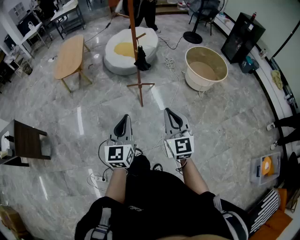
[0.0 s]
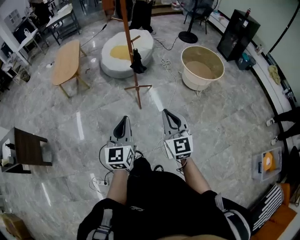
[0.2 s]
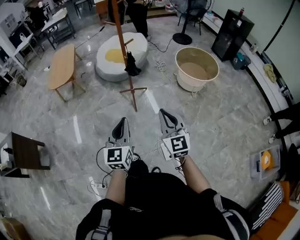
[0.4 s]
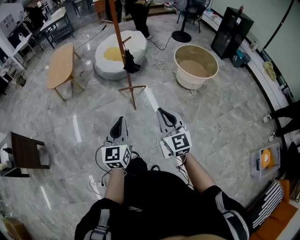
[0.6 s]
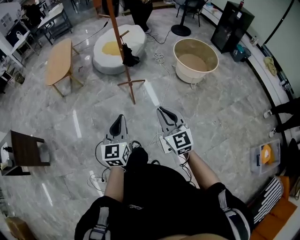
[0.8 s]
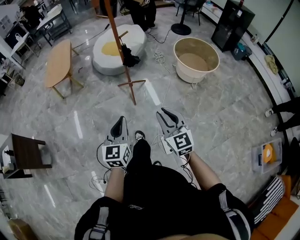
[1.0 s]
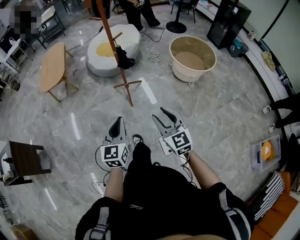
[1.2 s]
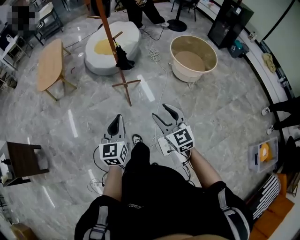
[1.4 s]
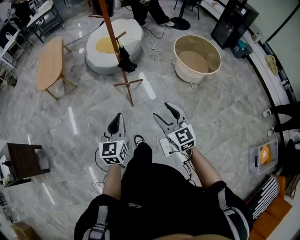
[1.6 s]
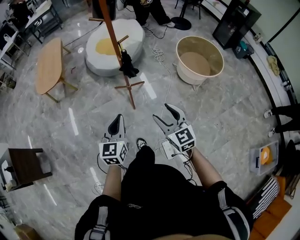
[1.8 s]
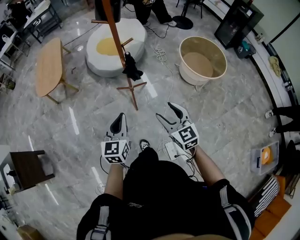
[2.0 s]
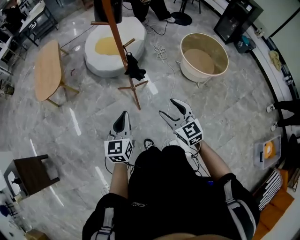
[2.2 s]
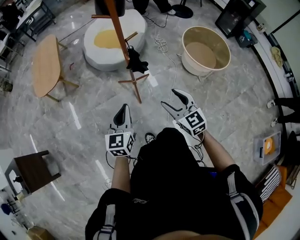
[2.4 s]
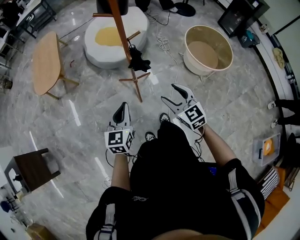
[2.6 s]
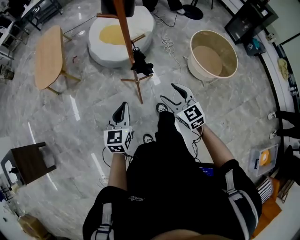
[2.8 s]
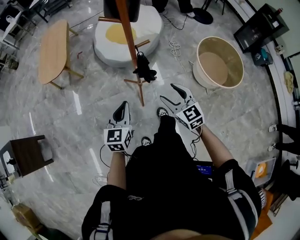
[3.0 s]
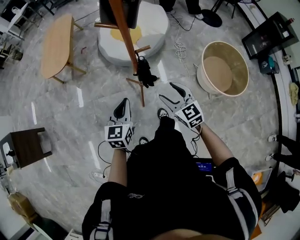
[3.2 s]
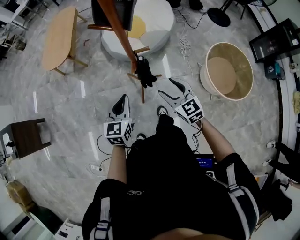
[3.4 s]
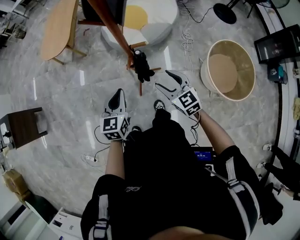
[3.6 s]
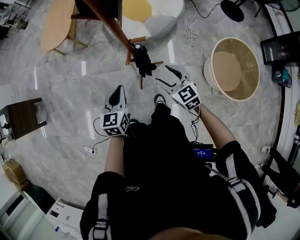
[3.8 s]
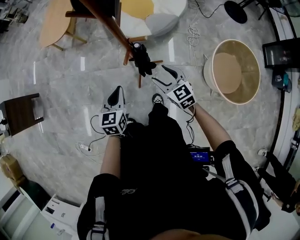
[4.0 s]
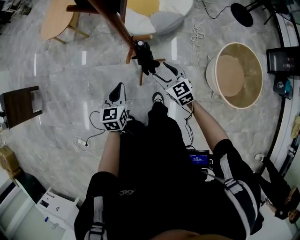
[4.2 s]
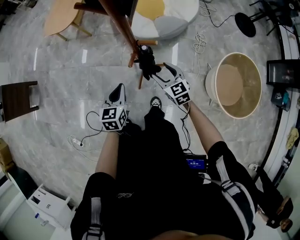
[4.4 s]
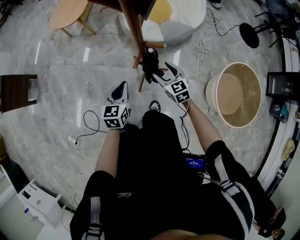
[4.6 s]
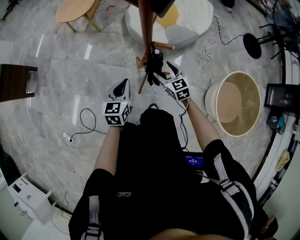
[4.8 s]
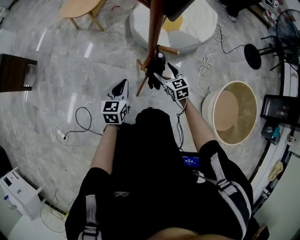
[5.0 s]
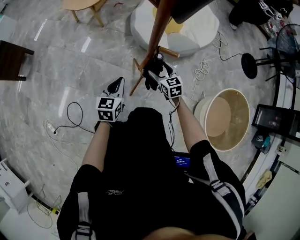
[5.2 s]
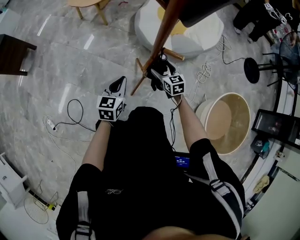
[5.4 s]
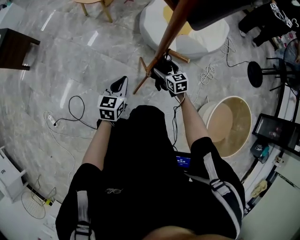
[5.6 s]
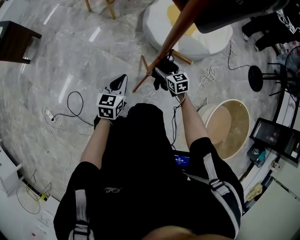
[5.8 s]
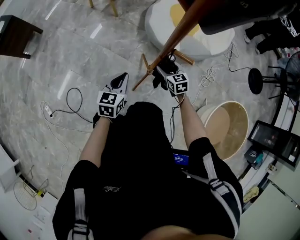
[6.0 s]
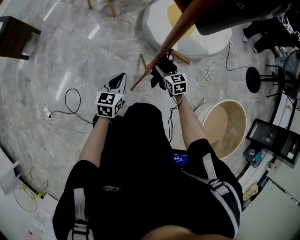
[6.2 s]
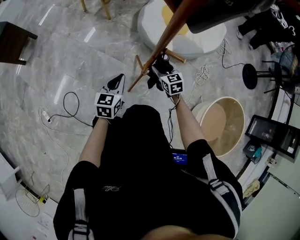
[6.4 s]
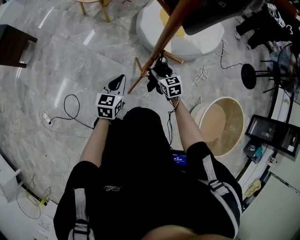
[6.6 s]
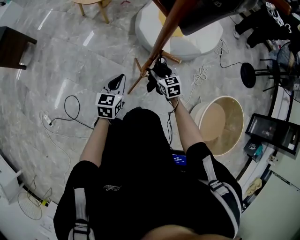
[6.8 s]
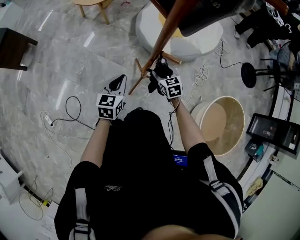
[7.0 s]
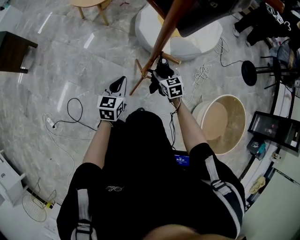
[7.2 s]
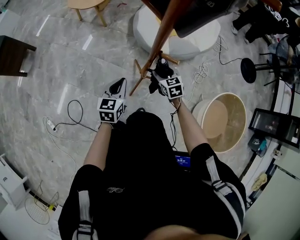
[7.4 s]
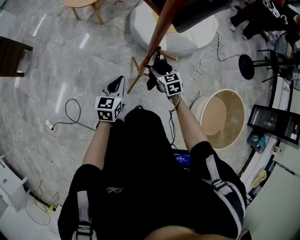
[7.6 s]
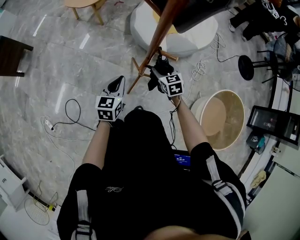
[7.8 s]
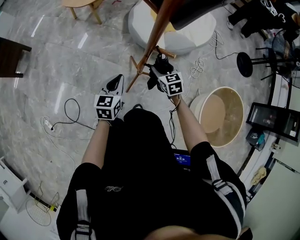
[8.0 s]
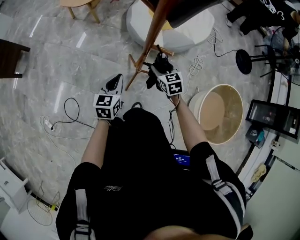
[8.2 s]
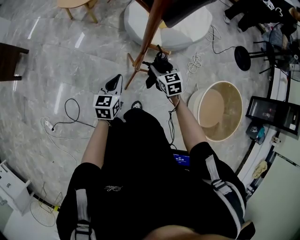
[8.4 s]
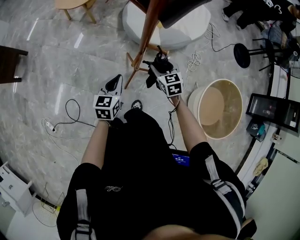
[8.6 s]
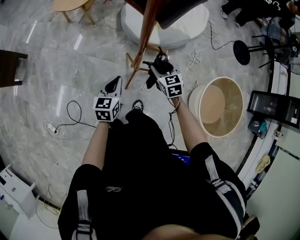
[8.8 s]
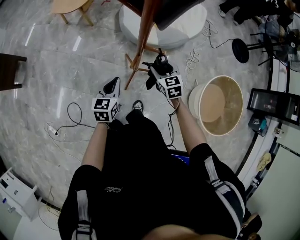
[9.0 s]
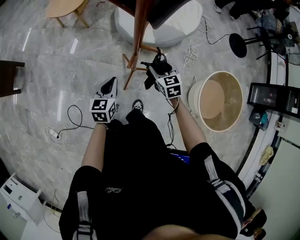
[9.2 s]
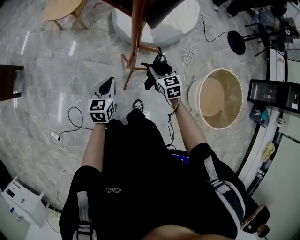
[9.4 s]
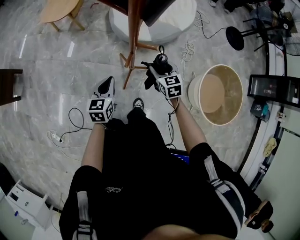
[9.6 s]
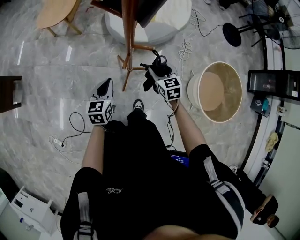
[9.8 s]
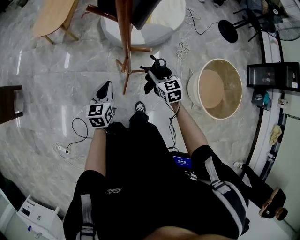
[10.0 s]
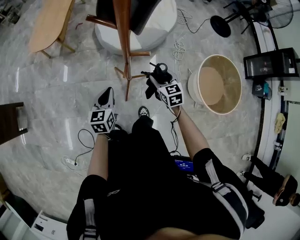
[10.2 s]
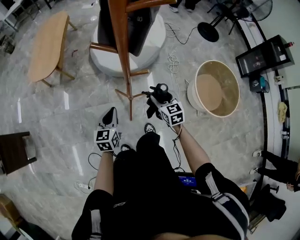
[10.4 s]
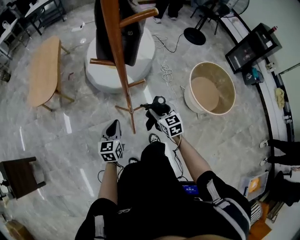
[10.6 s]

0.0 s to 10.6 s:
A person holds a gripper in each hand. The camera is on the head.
0.0 to 1.6 s: The grippers both shift forward and downward by roughly 15 cm. The right gripper opens its fingers.
1.6 to 3.0 s: Both grippers travel together forward, roughly 30 cm.
3.0 to 4.6 s: The right gripper shifts approximately 30 cm forward and downward, and turns by some 20 degrees; the left gripper shifts approximately 20 cm downward, forward and to the right, and turns by some 30 degrees.
4.6 to 6.0 s: The left gripper shifts by approximately 5 cm; the right gripper travels forward and downward by roughly 15 cm.
6.0 to 7.6 s: The right gripper goes some 5 cm upward.
7.6 to 9.0 s: The right gripper is displaced upward by roughly 5 cm.
9.0 to 10.6 s: The left gripper changes place by approximately 5 cm, and rotates roughly 20 degrees, while the right gripper ends up approximately 10 cm from where it was, and changes its angle by roughly 30 degrees.

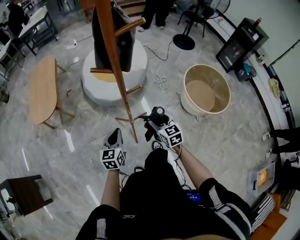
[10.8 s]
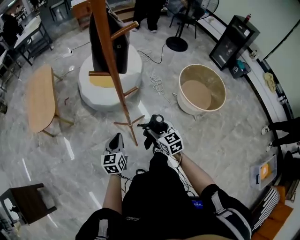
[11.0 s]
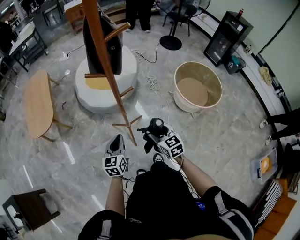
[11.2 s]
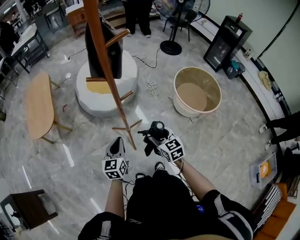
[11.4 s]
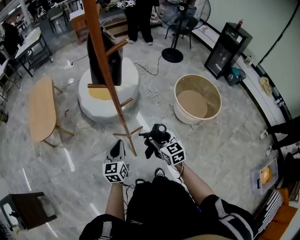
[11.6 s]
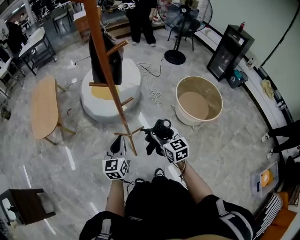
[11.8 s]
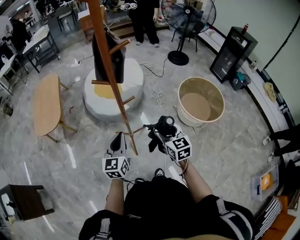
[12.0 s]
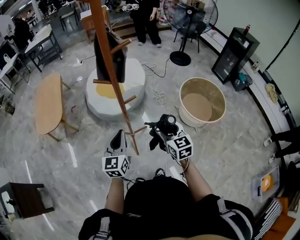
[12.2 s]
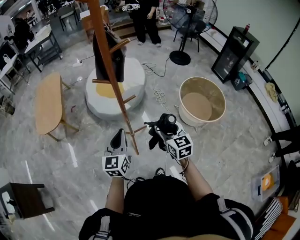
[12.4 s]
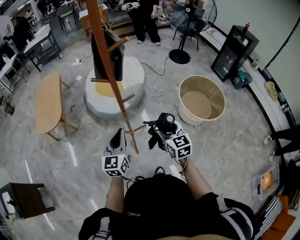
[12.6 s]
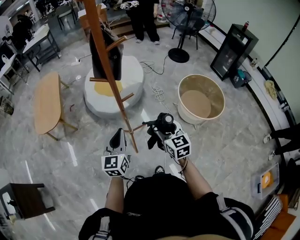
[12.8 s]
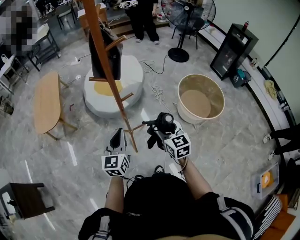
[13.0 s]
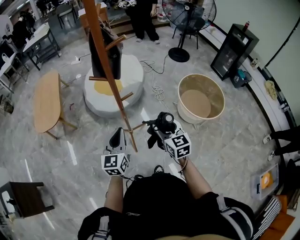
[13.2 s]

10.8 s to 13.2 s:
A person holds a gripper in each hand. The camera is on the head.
10.8 to 12.0 s: The right gripper is displaced upward and backward by roughly 15 cm; the left gripper travels upward by roughly 15 cm.
12.0 to 13.2 s: There are only small adjustments of the grippers.

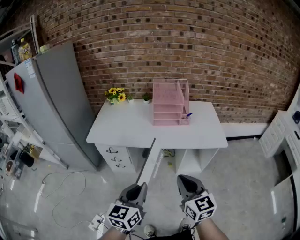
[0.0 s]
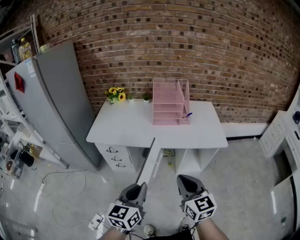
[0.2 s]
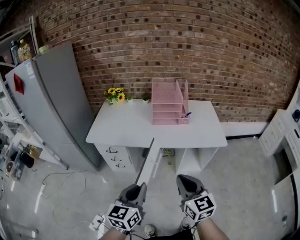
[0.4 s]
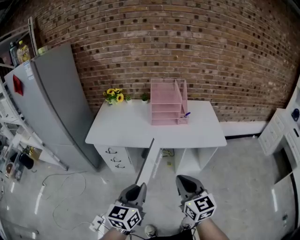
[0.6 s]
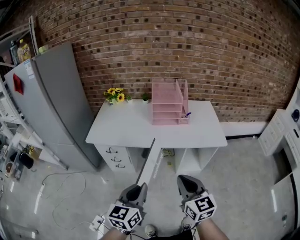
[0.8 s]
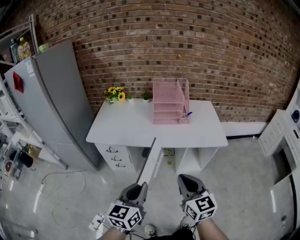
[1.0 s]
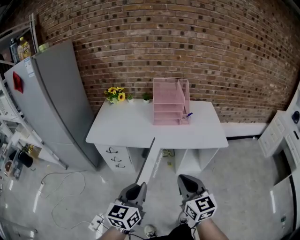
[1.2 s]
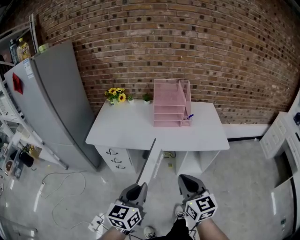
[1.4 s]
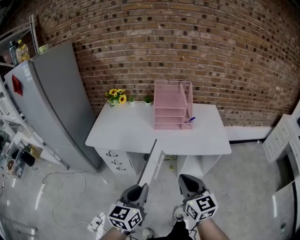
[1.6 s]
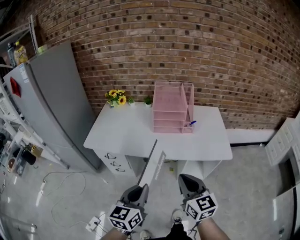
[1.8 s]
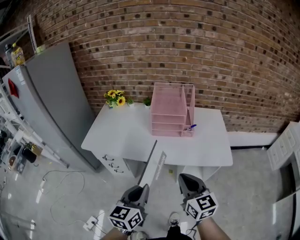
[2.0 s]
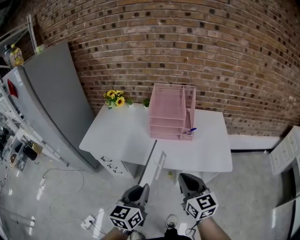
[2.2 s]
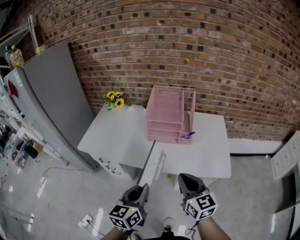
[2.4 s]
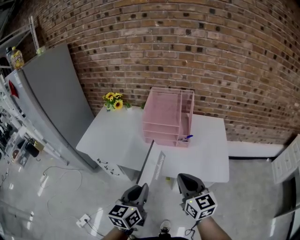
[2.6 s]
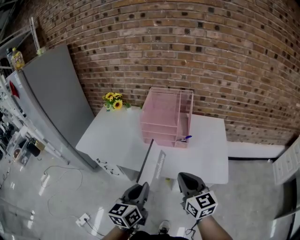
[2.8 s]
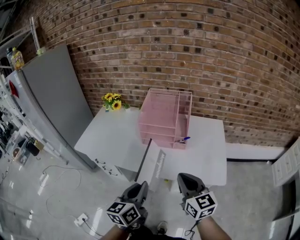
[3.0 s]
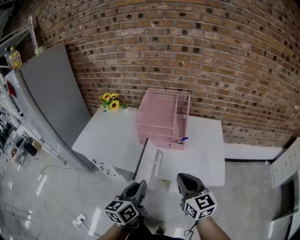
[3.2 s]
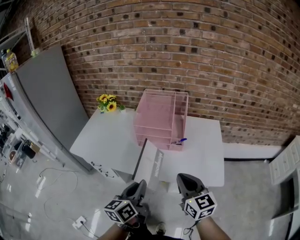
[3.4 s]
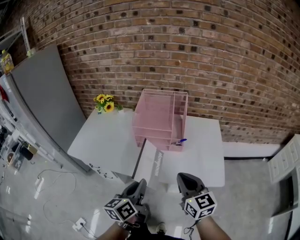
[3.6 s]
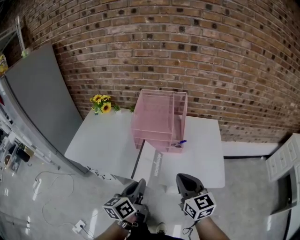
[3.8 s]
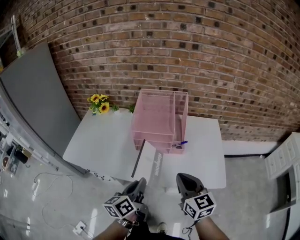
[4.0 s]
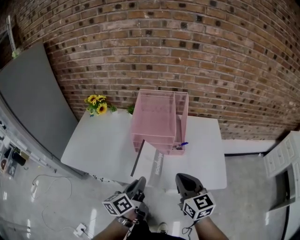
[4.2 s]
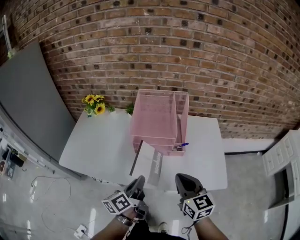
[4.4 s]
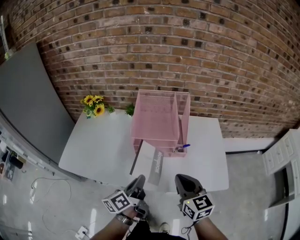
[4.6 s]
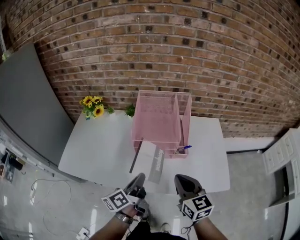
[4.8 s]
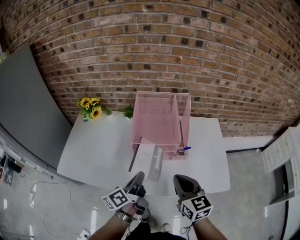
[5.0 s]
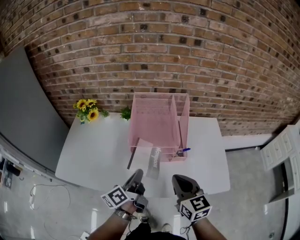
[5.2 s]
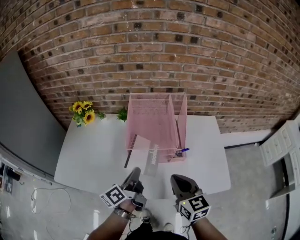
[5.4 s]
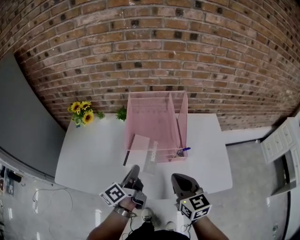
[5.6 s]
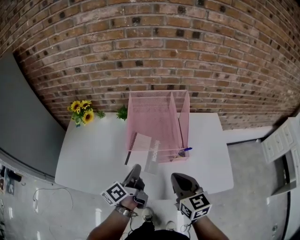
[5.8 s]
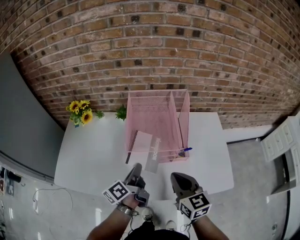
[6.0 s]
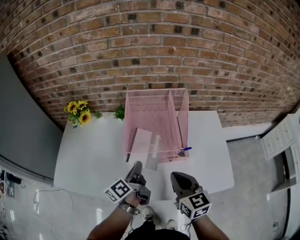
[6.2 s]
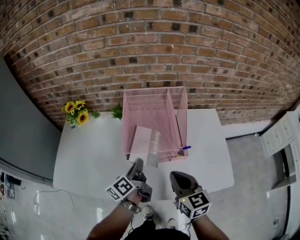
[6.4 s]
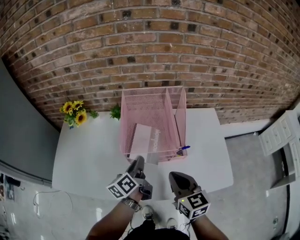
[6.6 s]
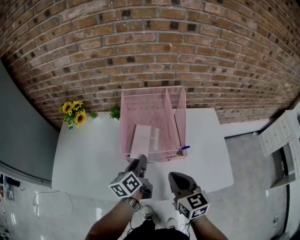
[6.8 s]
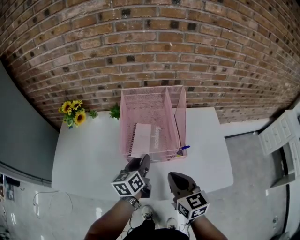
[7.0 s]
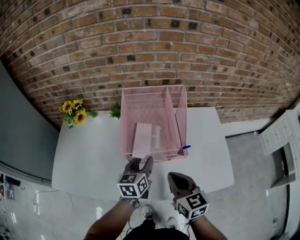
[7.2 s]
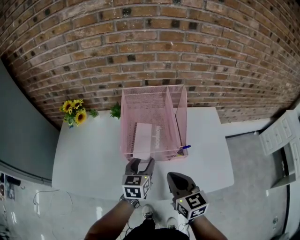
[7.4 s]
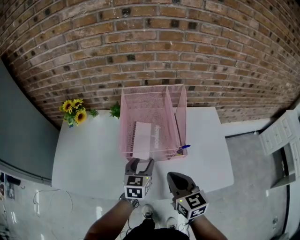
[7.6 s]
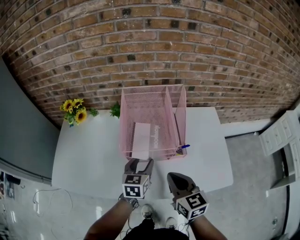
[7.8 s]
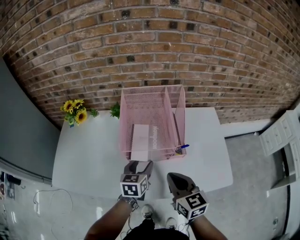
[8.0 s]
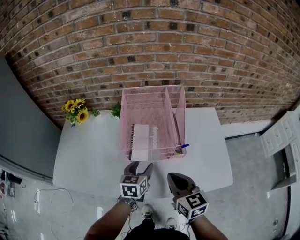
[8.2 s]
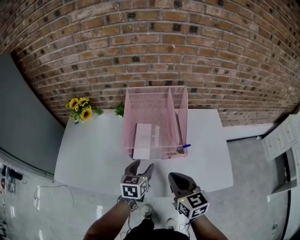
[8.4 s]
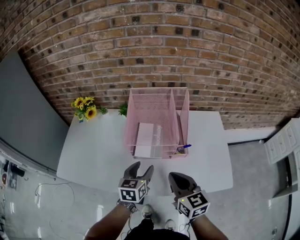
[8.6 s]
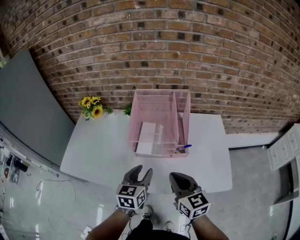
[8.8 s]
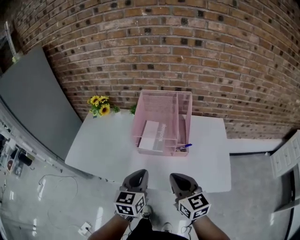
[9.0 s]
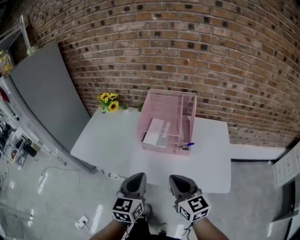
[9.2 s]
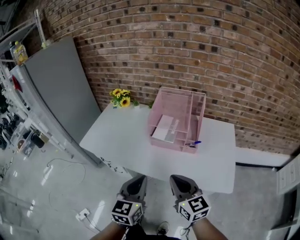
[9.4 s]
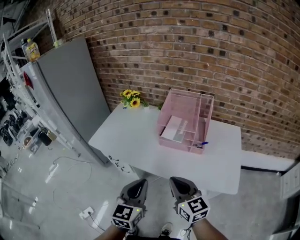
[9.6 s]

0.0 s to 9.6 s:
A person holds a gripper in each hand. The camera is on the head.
0.0 to 1.6 s: The right gripper heads forward, covering about 5 cm, while the left gripper changes place by roughly 5 cm.
1.6 to 3.2 s: The two grippers go some 25 cm forward and to the right. The left gripper turns by approximately 20 degrees.
3.2 to 4.8 s: The right gripper is displaced forward and to the left by approximately 15 cm, while the left gripper travels forward by some 20 cm, and turns by roughly 30 degrees.
4.8 to 6.4 s: The right gripper is displaced forward by approximately 10 cm. The left gripper heads forward, covering some 15 cm.
6.4 to 8.0 s: The left gripper ends up some 5 cm from where it was, rolls clockwise, seen from behind, by some 50 degrees, and opens up.
8.0 to 9.6 s: The right gripper goes some 20 cm backward, and rotates some 30 degrees; the left gripper travels backward and upward by some 35 cm, changes its angle by about 30 degrees, and closes up.

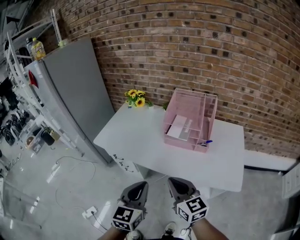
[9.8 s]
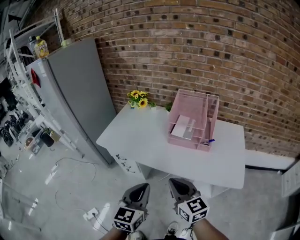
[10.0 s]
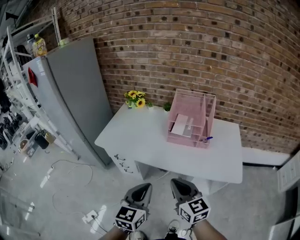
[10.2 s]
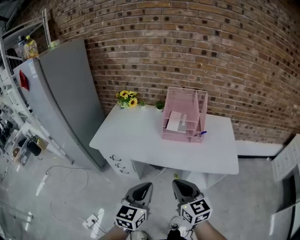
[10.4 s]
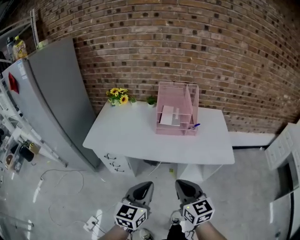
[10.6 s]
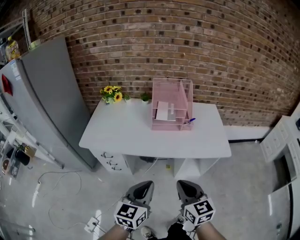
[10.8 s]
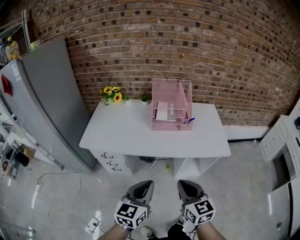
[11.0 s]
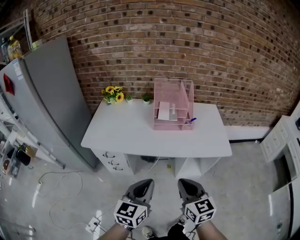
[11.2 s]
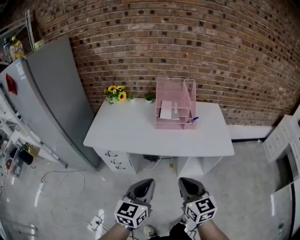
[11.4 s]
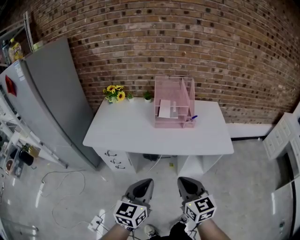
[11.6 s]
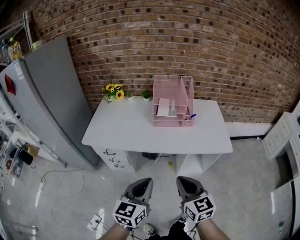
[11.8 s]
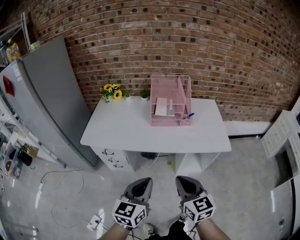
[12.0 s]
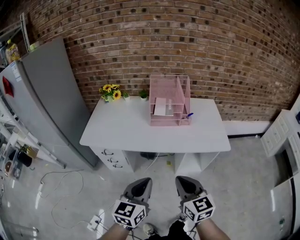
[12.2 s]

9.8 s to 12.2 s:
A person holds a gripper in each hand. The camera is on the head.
9.8 to 11.0 s: The right gripper ends up roughly 15 cm from where it was, and turns by approximately 30 degrees. The left gripper ends up roughly 10 cm from where it was, and turns by about 30 degrees.
11.0 to 12.2 s: The grippers move only a little.
